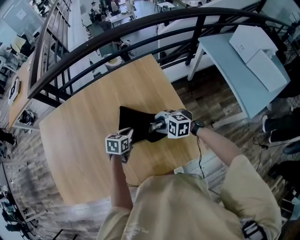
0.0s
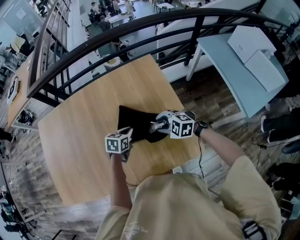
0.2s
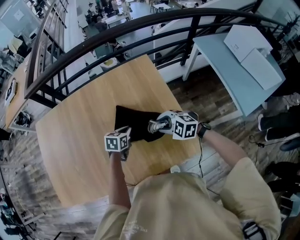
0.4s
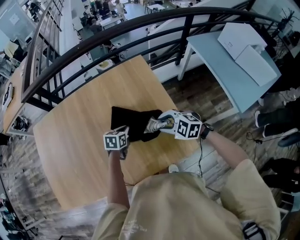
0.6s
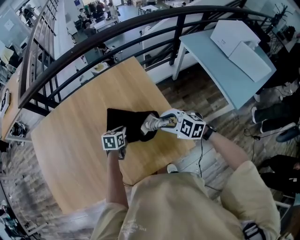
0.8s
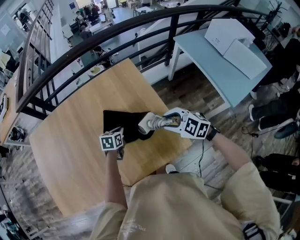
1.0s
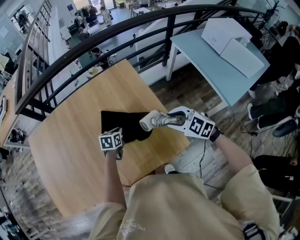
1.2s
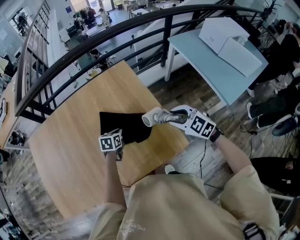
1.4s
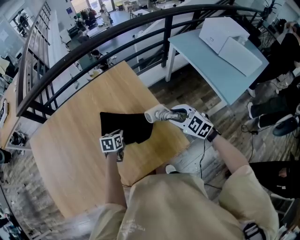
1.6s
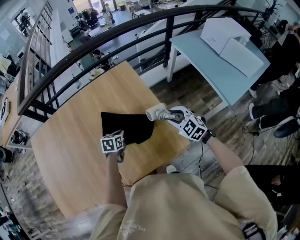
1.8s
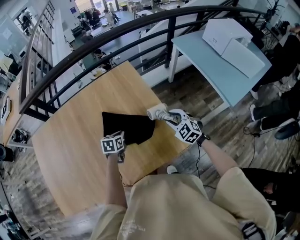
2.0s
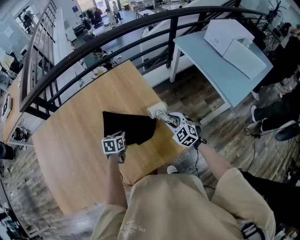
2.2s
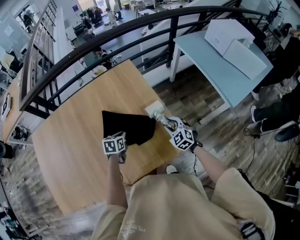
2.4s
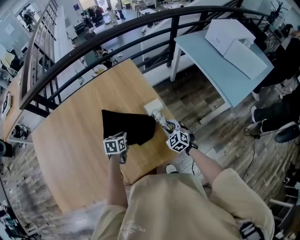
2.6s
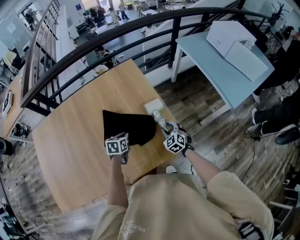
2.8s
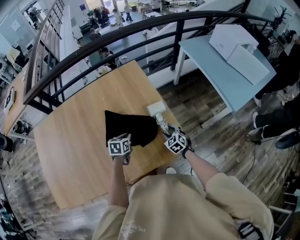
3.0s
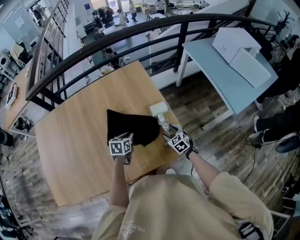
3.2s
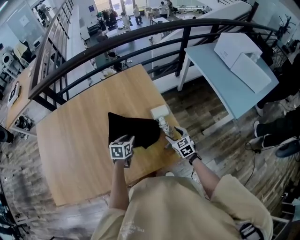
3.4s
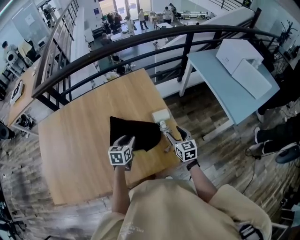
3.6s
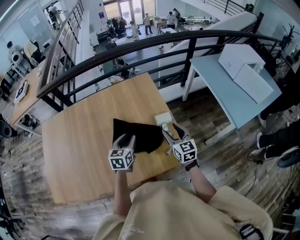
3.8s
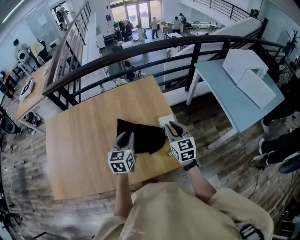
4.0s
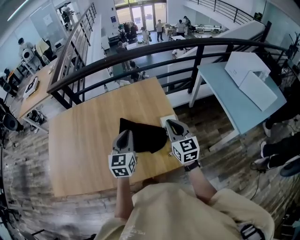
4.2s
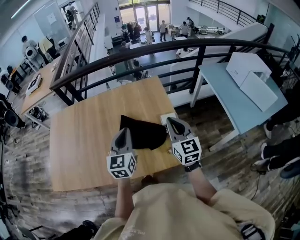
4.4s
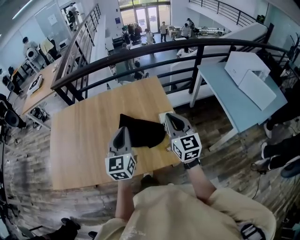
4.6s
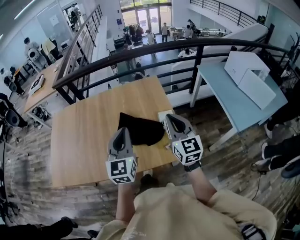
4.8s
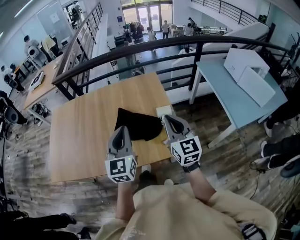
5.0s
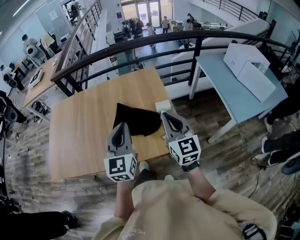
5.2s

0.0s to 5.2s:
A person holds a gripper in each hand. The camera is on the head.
0.0s to 1.8s: The right gripper moves to the right, some 20 cm, and changes its angle by some 40 degrees, while the left gripper changes place by roughly 5 cm.
1.8s to 3.4s: The right gripper heads downward, covering about 10 cm, turns by some 30 degrees, and opens its fingers. The left gripper is displaced backward by about 5 cm, and opens its fingers.
3.4s to 5.2s: The left gripper moves upward and backward, some 35 cm, angles its fingers upward, by some 40 degrees, and closes its fingers. Meanwhile the right gripper travels upward by some 30 cm, points its fingers roughly 40 degrees further upward, and closes its fingers.

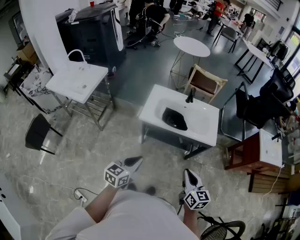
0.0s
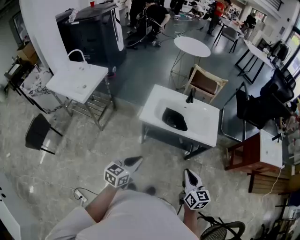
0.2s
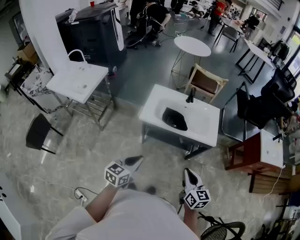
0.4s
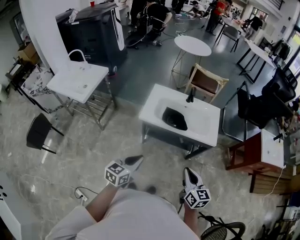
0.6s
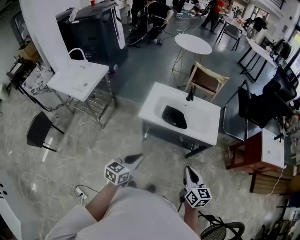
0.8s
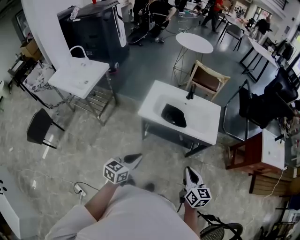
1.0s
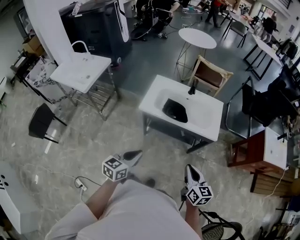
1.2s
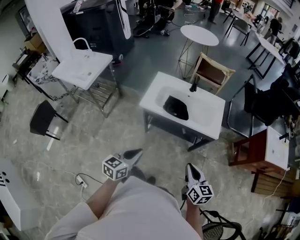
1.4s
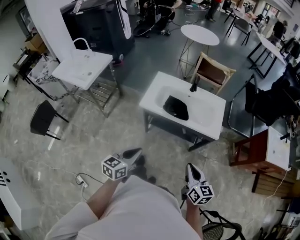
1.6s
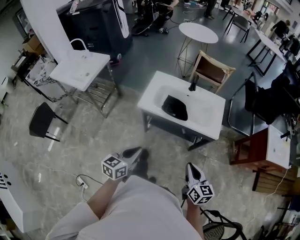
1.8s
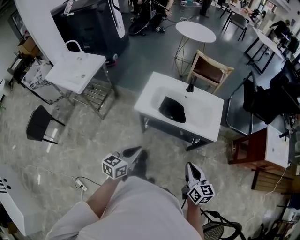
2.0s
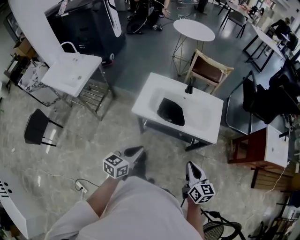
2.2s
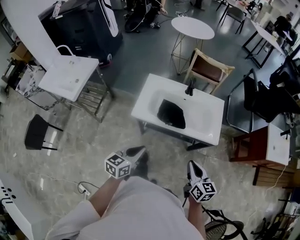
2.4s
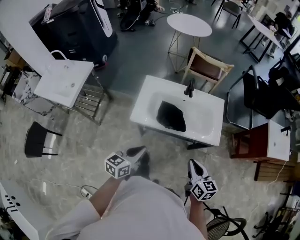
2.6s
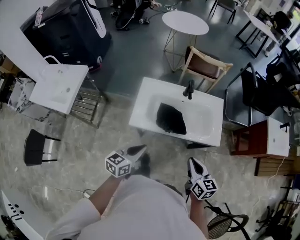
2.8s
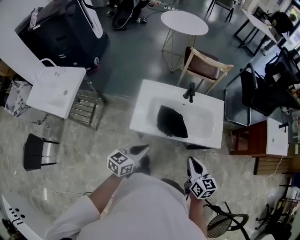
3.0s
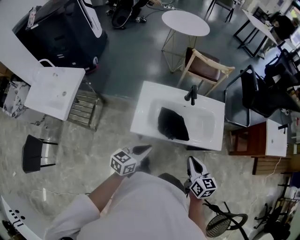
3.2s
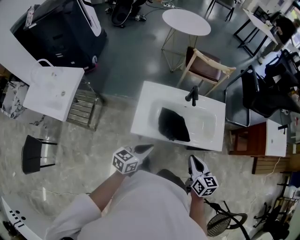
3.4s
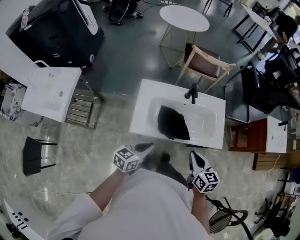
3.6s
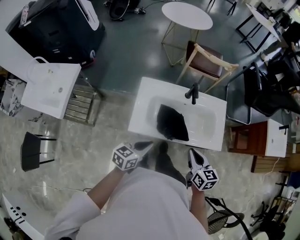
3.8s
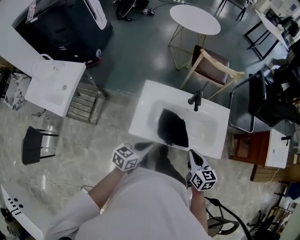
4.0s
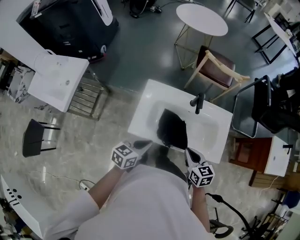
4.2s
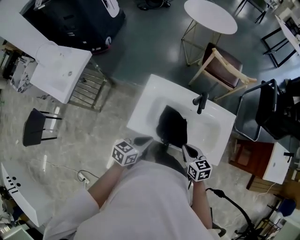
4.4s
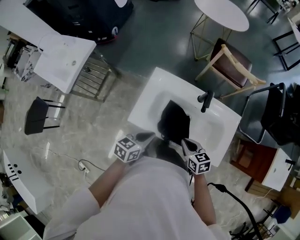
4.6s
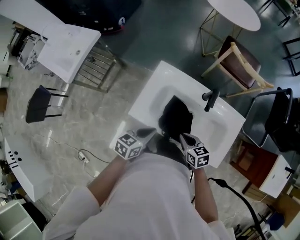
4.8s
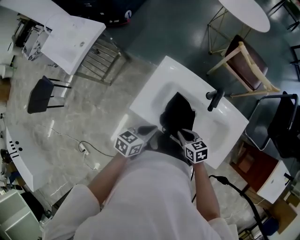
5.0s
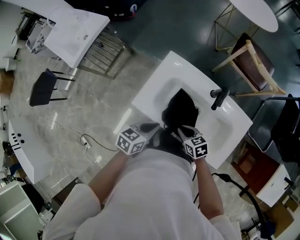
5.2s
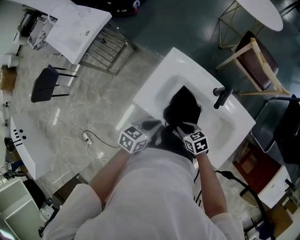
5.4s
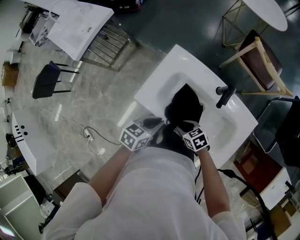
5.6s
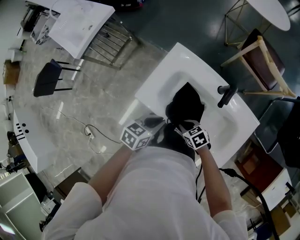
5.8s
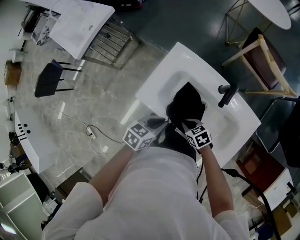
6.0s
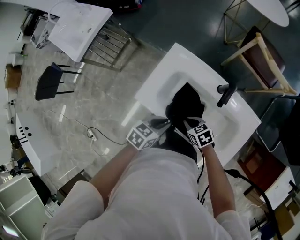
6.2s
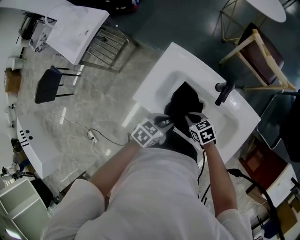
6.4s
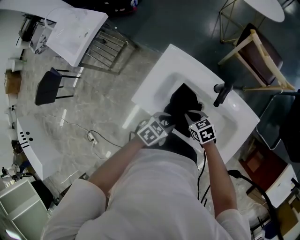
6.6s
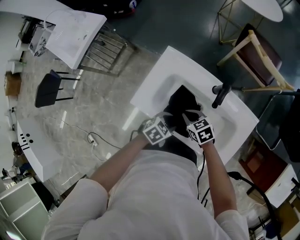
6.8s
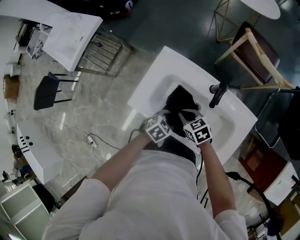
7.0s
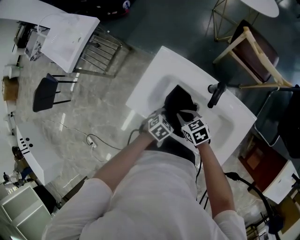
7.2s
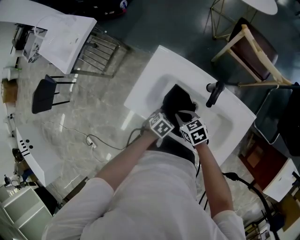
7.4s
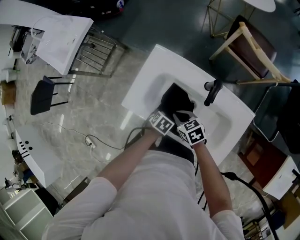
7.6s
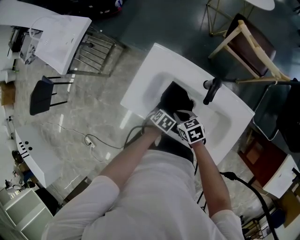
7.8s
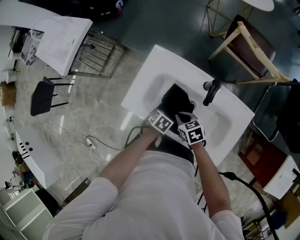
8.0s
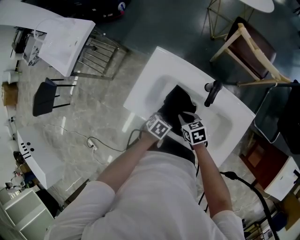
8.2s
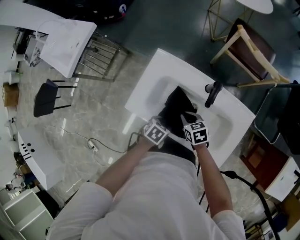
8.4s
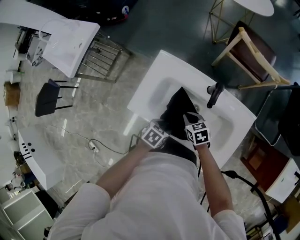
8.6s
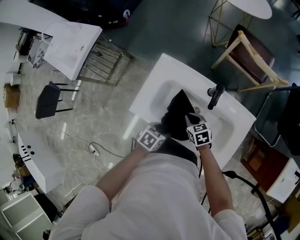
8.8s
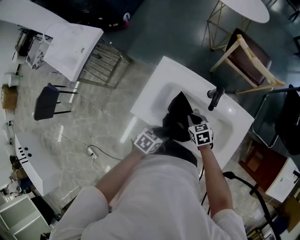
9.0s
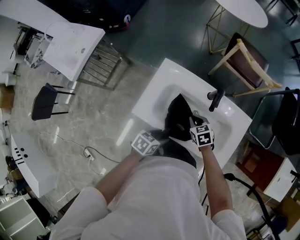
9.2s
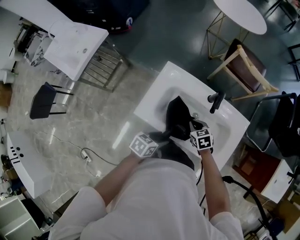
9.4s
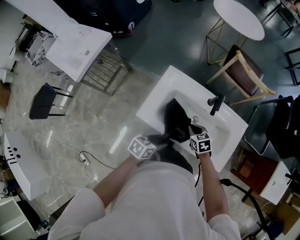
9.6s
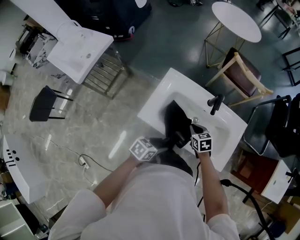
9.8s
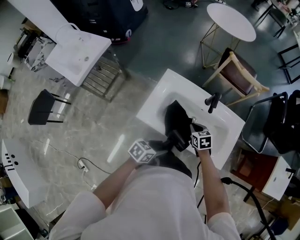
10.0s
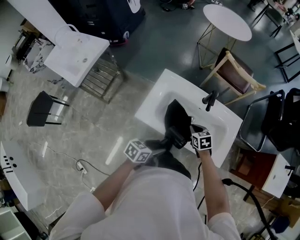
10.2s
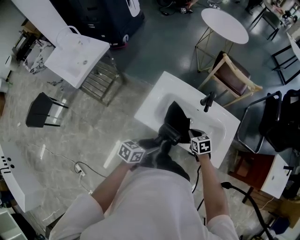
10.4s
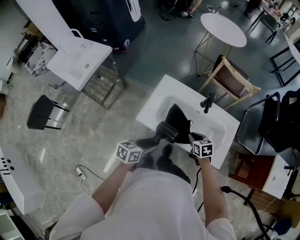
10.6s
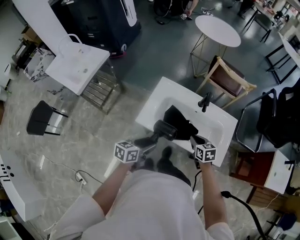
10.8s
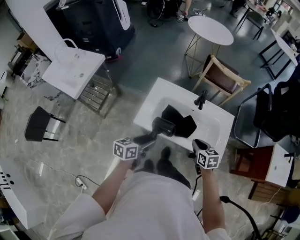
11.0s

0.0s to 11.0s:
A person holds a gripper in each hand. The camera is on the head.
0.0s to 1.6s: Both grippers travel together to the right, some 5 cm.
1.6s to 3.2s: The right gripper travels forward and to the left by roughly 30 cm, while the left gripper goes some 30 cm forward, and rotates roughly 20 degrees.
3.2s to 4.8s: The left gripper ends up roughly 20 cm from where it was, and swivels about 20 degrees; the right gripper shifts by roughly 25 cm, and changes its angle by about 40 degrees.
4.8s to 6.2s: Both grippers travel together downward, about 10 cm. The right gripper rotates about 30 degrees, and opens, then closes once more.
6.2s to 7.8s: The left gripper shifts about 20 cm downward, tips its fingers downward by roughly 30 degrees, and opens, while the right gripper changes place by approximately 5 cm.
7.8s to 9.4s: The left gripper shifts roughly 20 cm upward, and tips its fingers upward by roughly 30 degrees.
9.4s to 11.0s: The right gripper travels backward, upward and to the right by some 20 cm, and rotates some 20 degrees. The left gripper moves upward, backward and to the left, roughly 15 cm, and turns by some 20 degrees.

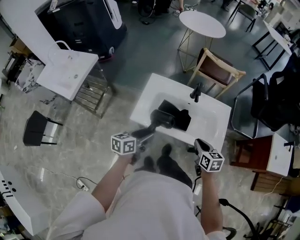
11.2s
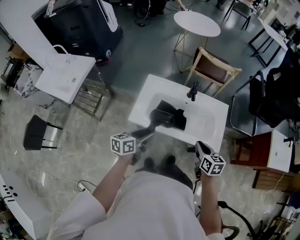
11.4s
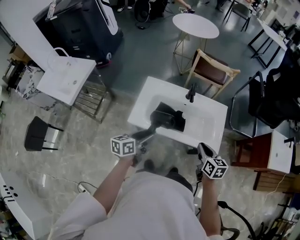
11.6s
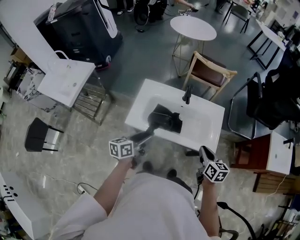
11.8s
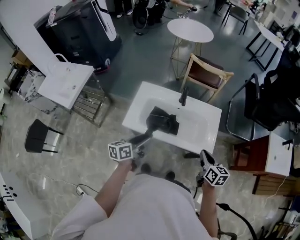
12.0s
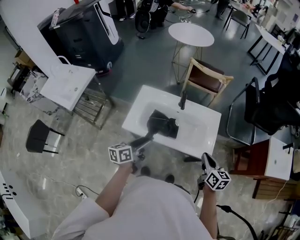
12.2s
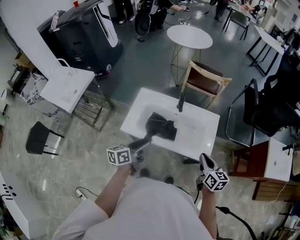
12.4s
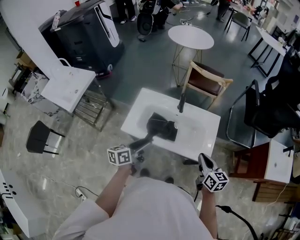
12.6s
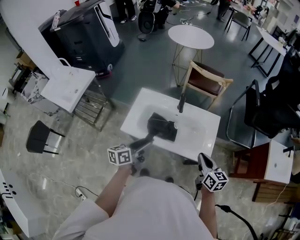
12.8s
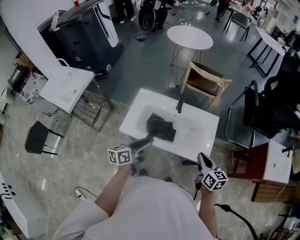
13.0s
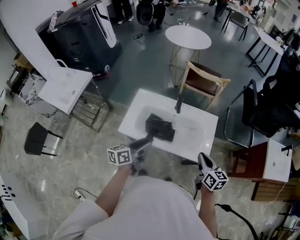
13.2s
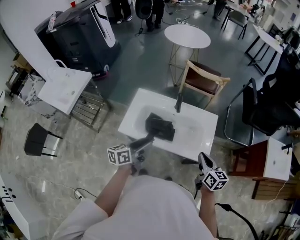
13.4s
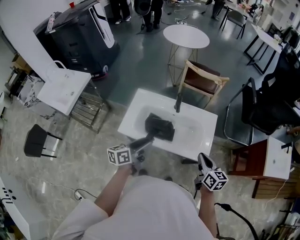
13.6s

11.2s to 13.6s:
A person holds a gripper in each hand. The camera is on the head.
11.2s to 12.4s: Both grippers travel together to the right and upward, roughly 15 cm.
12.4s to 13.6s: The grippers make only small movements.

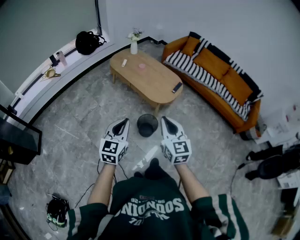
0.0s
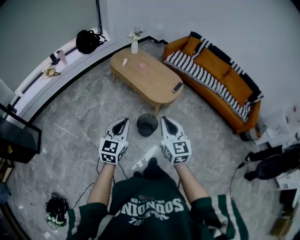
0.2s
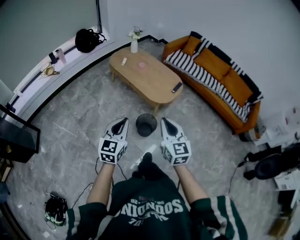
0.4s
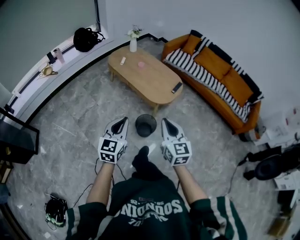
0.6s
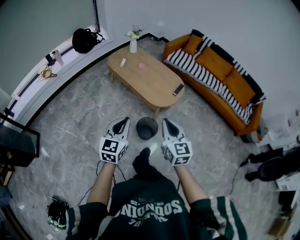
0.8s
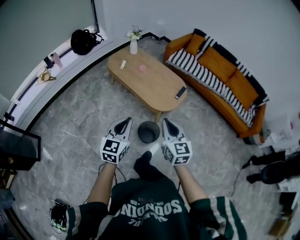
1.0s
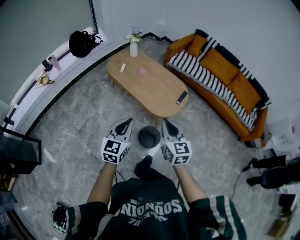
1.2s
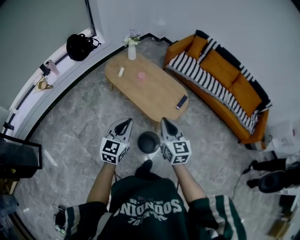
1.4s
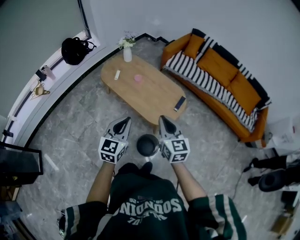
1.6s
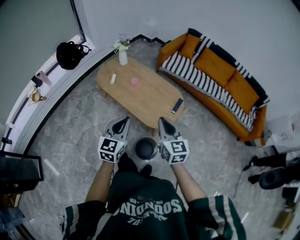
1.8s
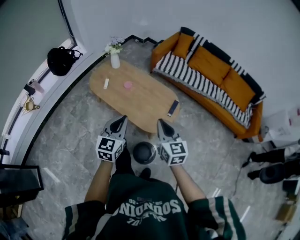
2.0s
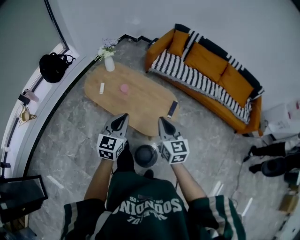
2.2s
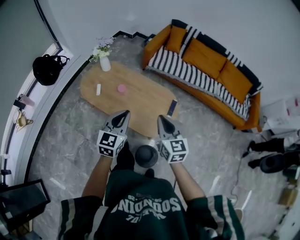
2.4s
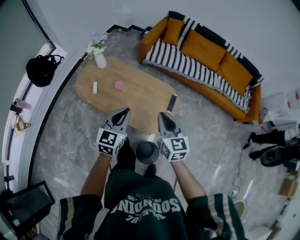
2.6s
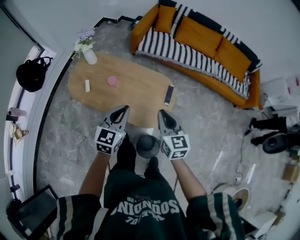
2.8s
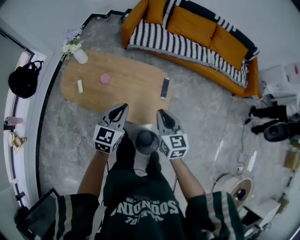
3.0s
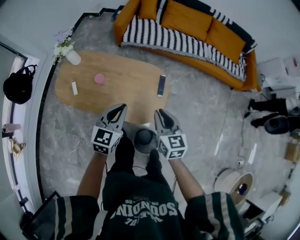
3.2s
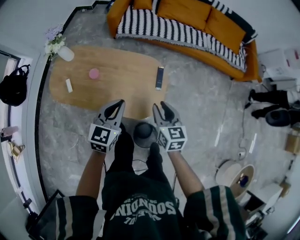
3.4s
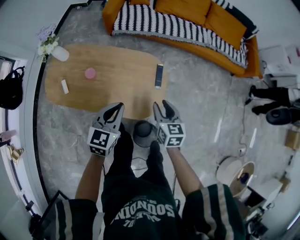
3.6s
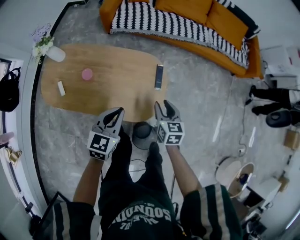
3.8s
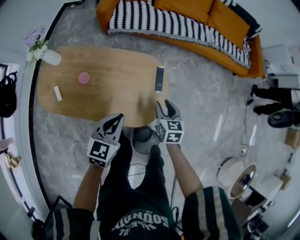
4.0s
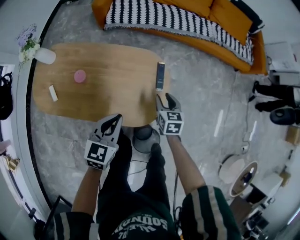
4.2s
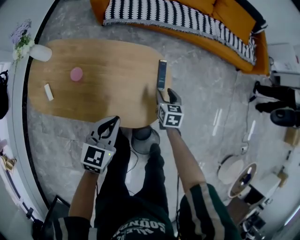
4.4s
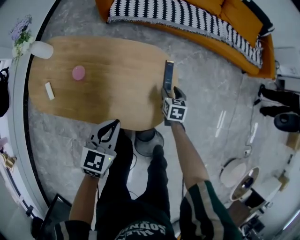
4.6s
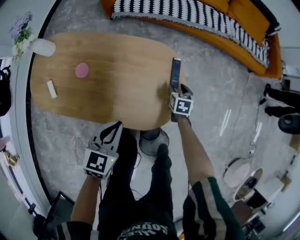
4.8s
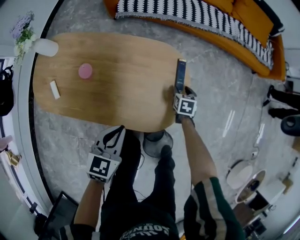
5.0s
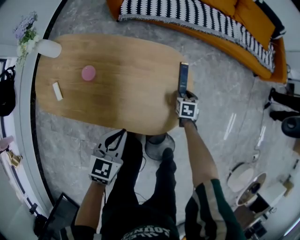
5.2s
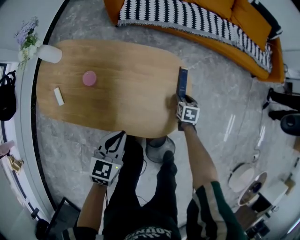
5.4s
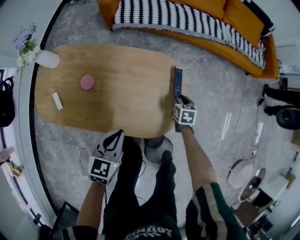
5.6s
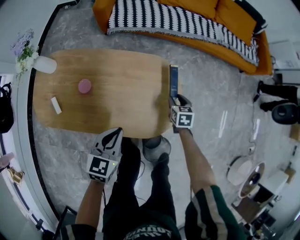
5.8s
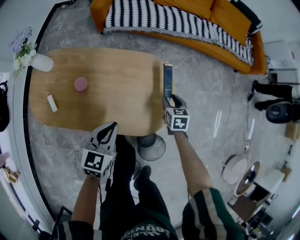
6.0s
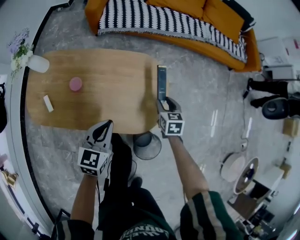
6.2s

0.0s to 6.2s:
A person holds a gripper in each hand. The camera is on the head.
0.0s to 1.6s: The grippers both shift forward by roughly 30 cm.
1.6s to 3.2s: The left gripper moves some 30 cm, and changes its angle by roughly 30 degrees. The right gripper moves about 20 cm, and rotates roughly 30 degrees.
3.2s to 4.6s: The left gripper moves downward, about 20 cm; the right gripper is displaced downward and forward by roughly 40 cm, changes its angle by some 30 degrees, and opens.
4.6s to 6.2s: The right gripper is displaced upward and backward by approximately 10 cm.
